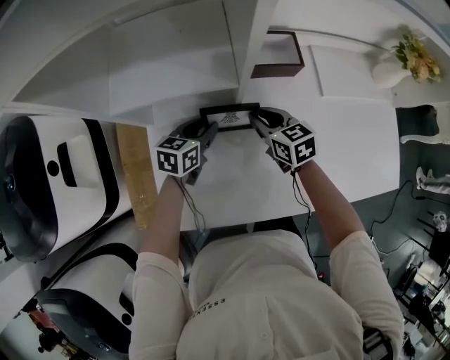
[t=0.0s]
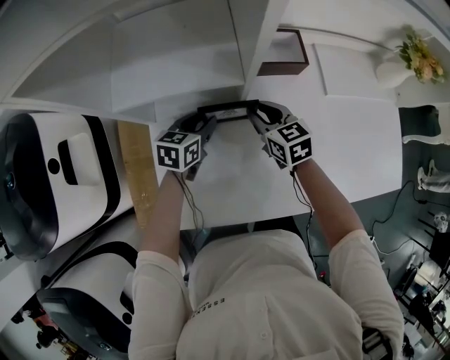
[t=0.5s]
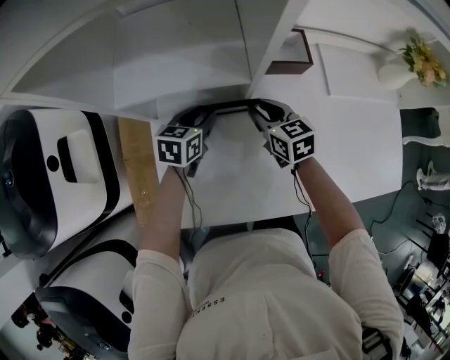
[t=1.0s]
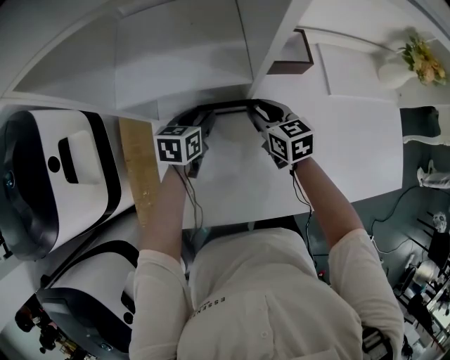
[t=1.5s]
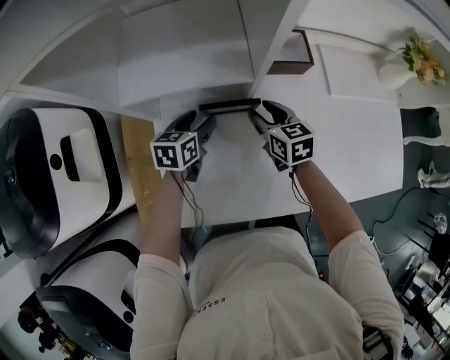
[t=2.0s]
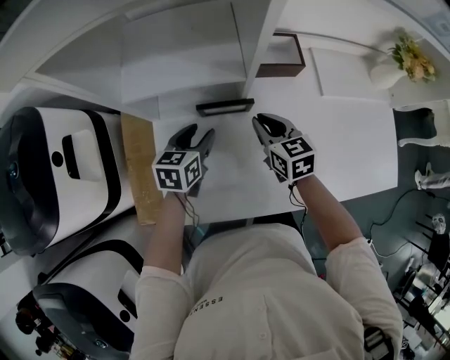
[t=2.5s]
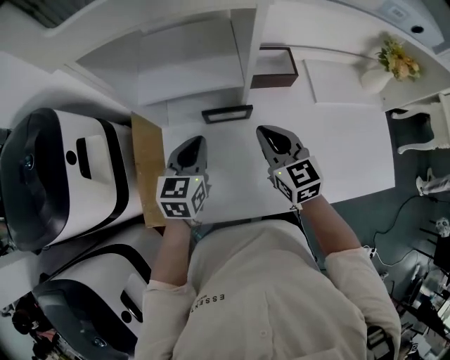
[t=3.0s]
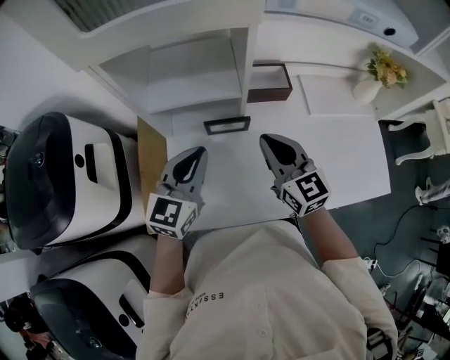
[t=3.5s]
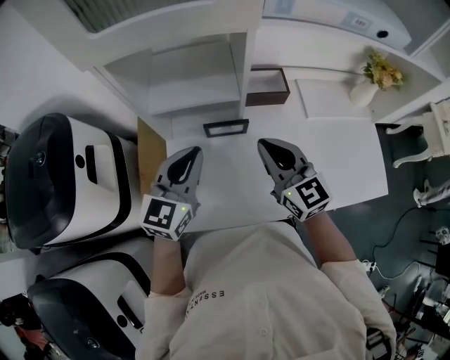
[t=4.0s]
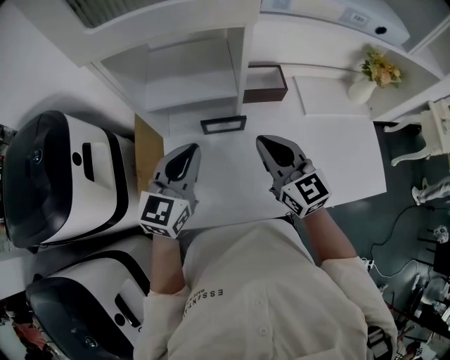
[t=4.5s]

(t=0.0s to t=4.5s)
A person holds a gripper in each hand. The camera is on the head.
t=0.0s - t=2.0s: The right gripper opens; the left gripper opens up.
t=2.0s - t=4.5s: The two grippers go approximately 25 cm upward and backward. The right gripper swivels roughly 30 degrees, and closes its fingers; the left gripper swivels some 40 degrees, and closes its fingers.

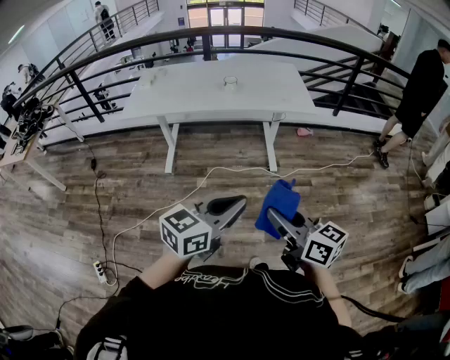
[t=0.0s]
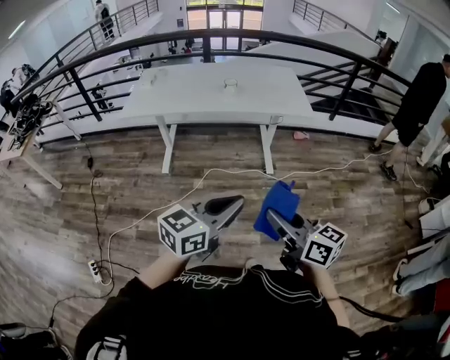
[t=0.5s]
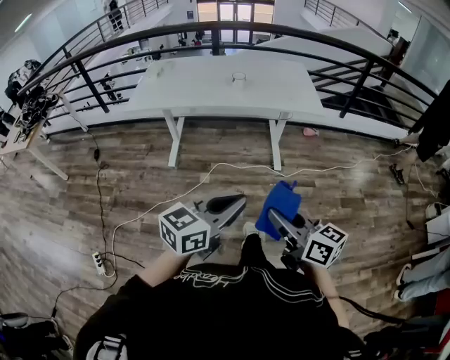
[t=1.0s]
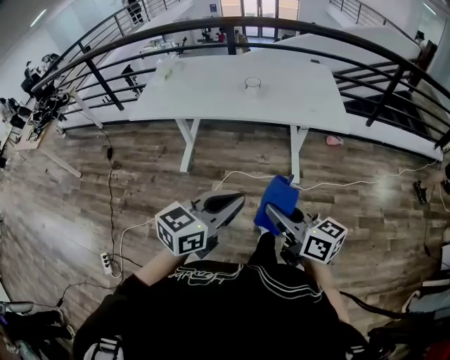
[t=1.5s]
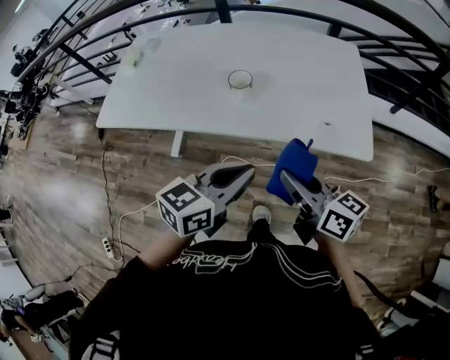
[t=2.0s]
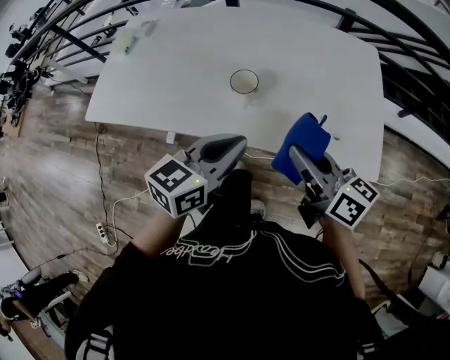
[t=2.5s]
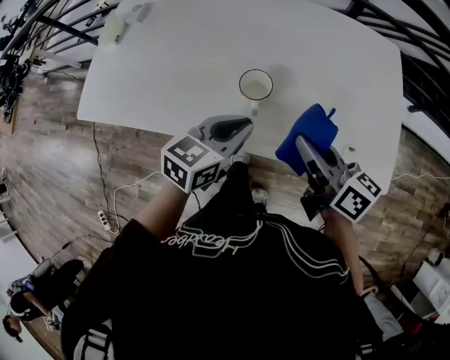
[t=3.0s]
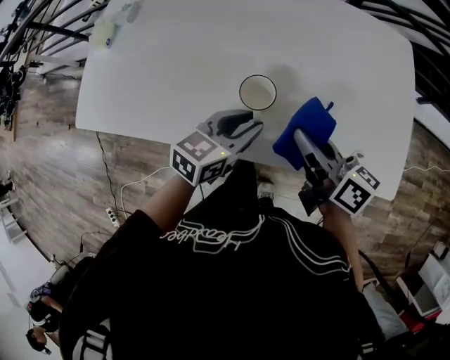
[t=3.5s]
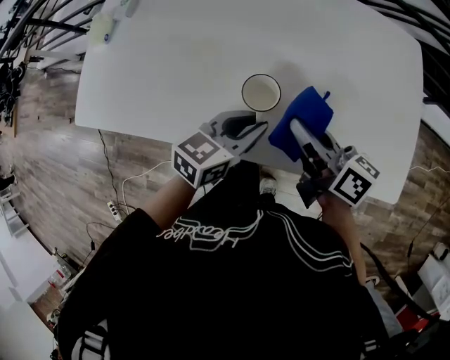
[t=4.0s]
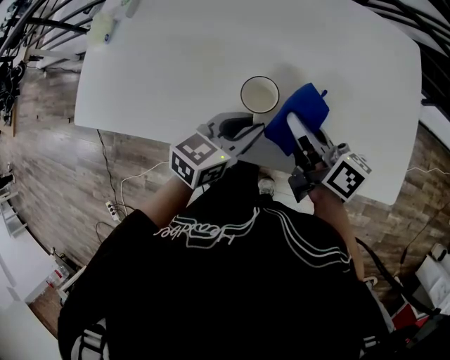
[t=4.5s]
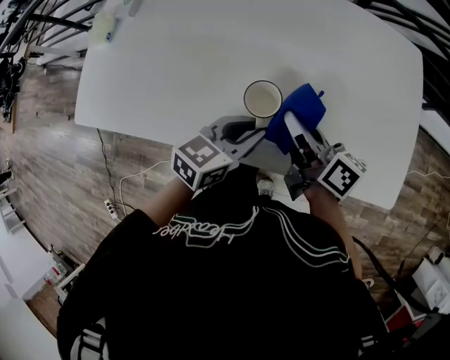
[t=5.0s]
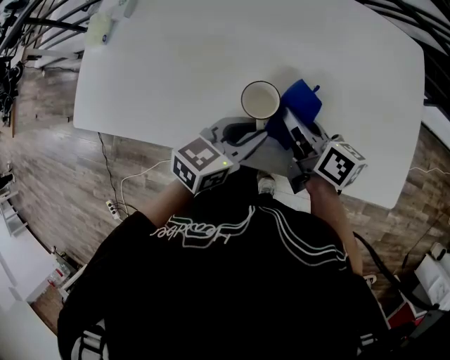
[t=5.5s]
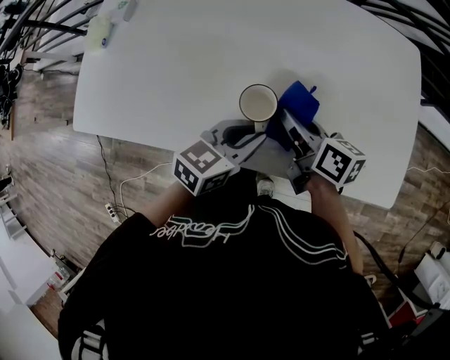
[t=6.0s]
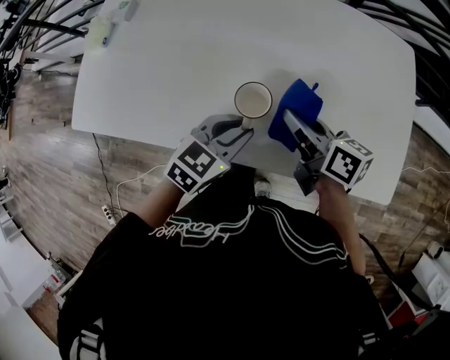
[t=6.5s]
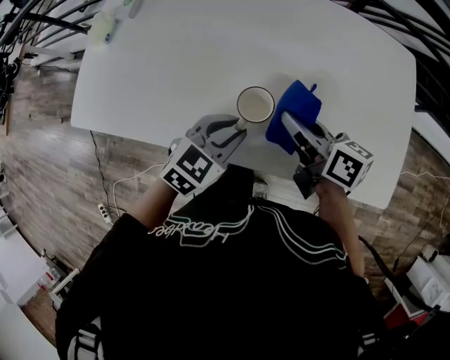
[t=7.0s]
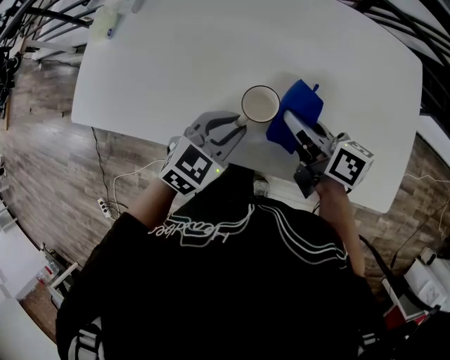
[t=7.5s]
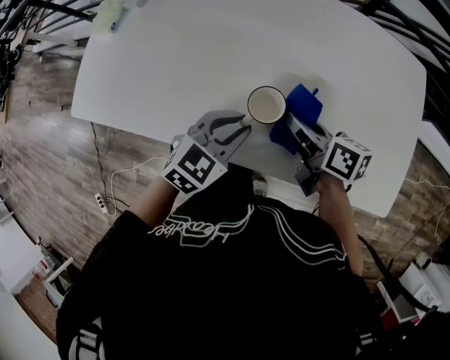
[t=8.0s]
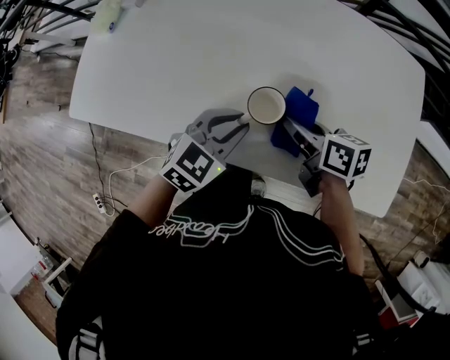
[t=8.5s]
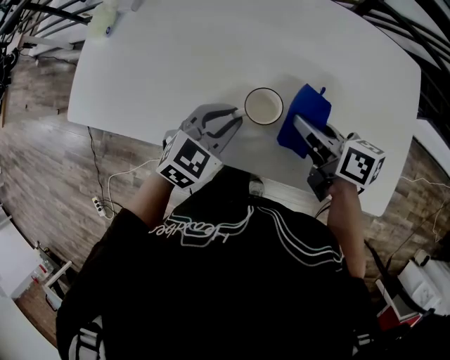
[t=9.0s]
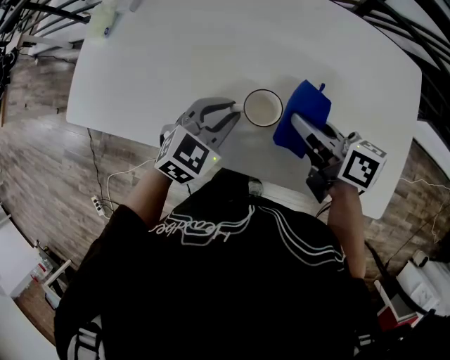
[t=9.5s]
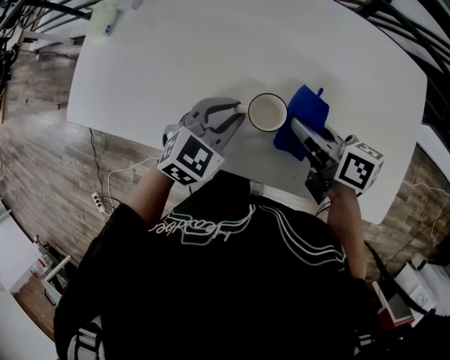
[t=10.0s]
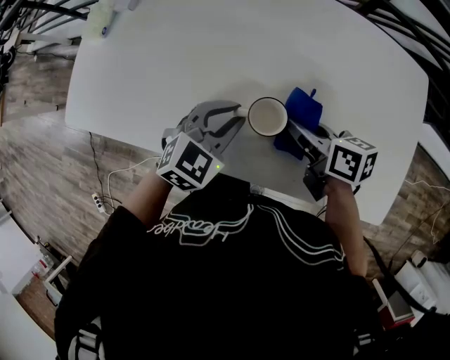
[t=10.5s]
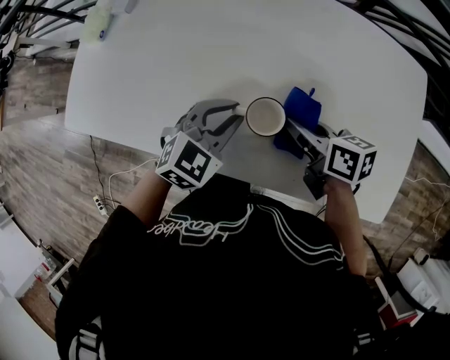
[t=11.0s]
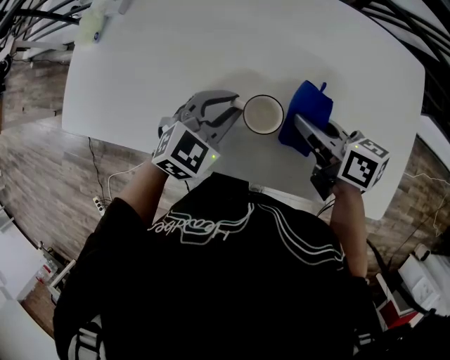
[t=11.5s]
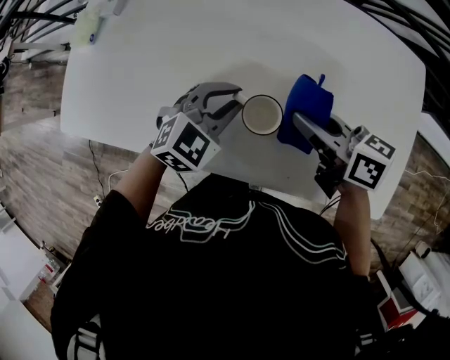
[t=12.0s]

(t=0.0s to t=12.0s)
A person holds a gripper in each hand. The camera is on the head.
t=0.0s - t=2.0s: The pair of grippers is taken forward, some 50 cm.
t=2.0s - t=4.0s: The left gripper is displaced forward and downward by roughly 30 cm. Meanwhile the right gripper goes some 25 cm forward.
t=4.0s - t=6.0s: The right gripper travels downward by approximately 5 cm.
t=6.0s - t=8.0s: The left gripper moves to the left, about 5 cm, and changes its angle by approximately 20 degrees.
t=8.0s - t=10.0s: The left gripper is displaced forward by about 5 cm.
t=10.0s - t=12.0s: The grippers move only a little.

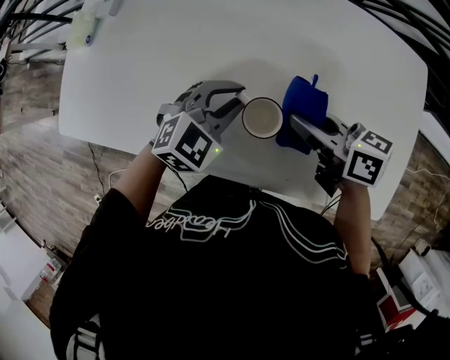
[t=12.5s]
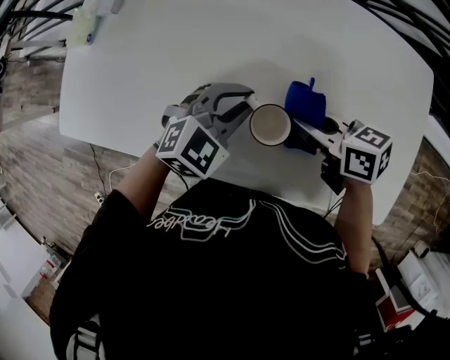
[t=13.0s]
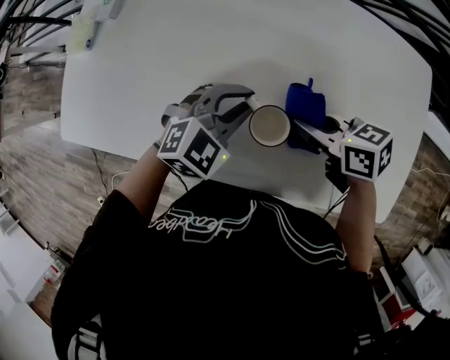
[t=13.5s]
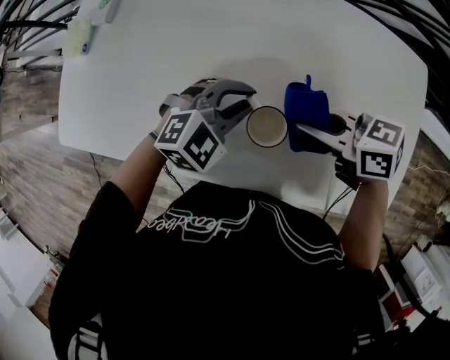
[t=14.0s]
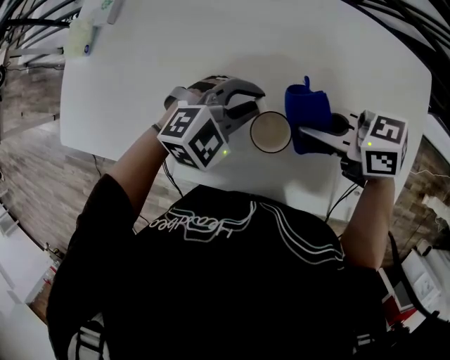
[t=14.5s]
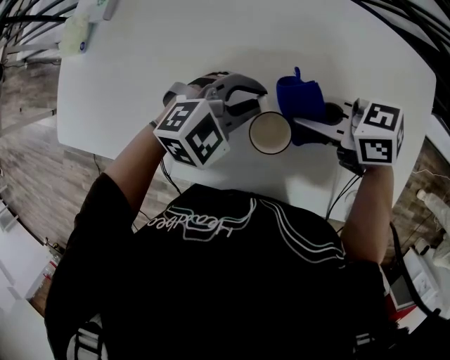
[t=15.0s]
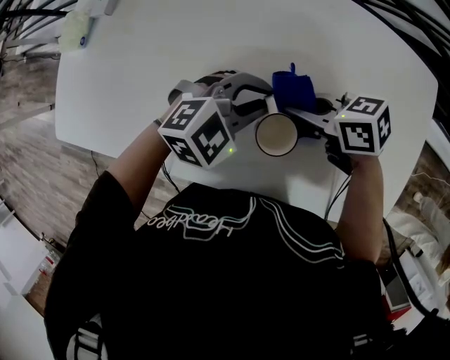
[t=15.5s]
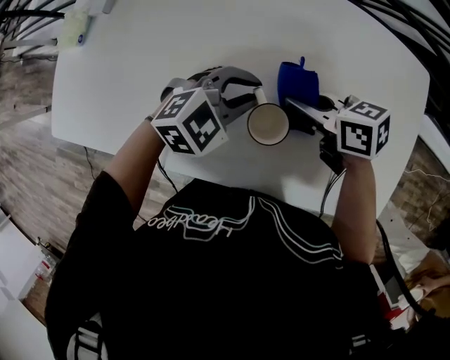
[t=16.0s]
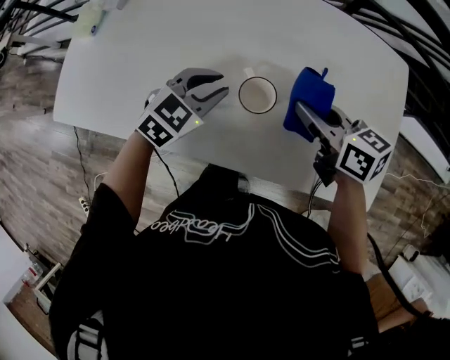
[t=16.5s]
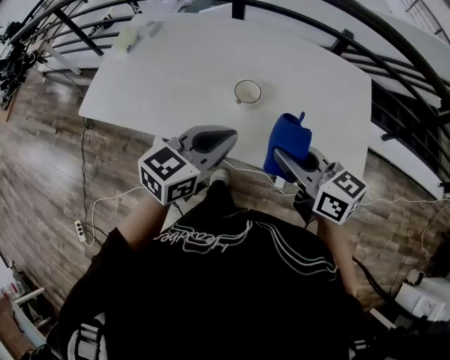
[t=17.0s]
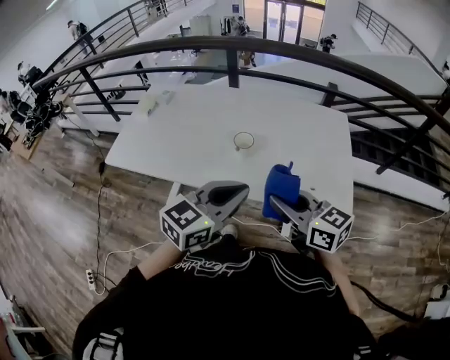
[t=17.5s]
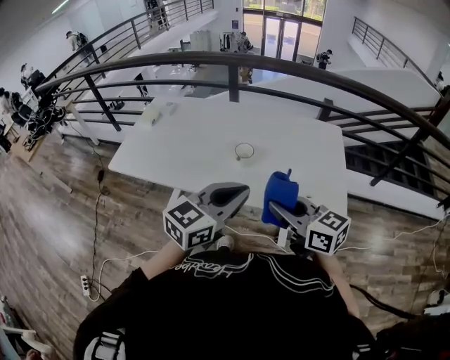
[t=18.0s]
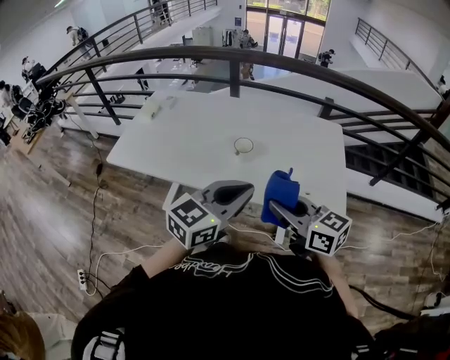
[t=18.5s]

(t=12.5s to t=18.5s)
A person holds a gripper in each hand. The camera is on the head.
t=12.5s - t=14.5s: The right gripper changes its angle by approximately 20 degrees.
t=14.5s - t=16.5s: The right gripper travels downward and back again, about 5 cm each way, and rotates some 30 degrees. Meanwhile the left gripper shifts by approximately 5 cm, and swivels about 30 degrees.
t=16.5s - t=18.5s: Both grippers move backward and upward, about 40 cm. The left gripper points its fingers some 30 degrees further upward, and closes; the right gripper rotates about 20 degrees.

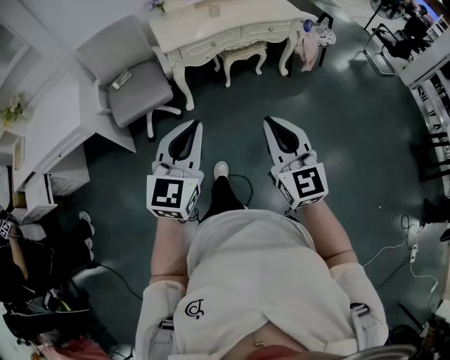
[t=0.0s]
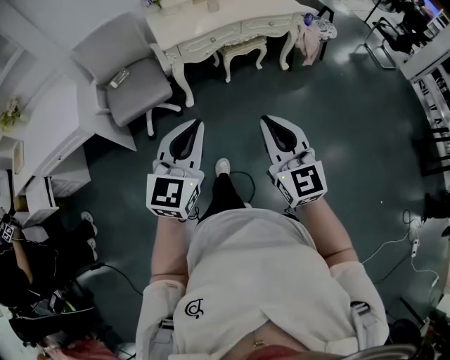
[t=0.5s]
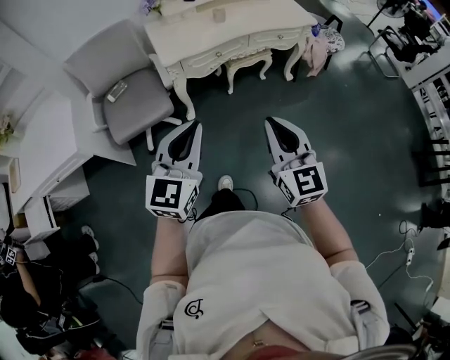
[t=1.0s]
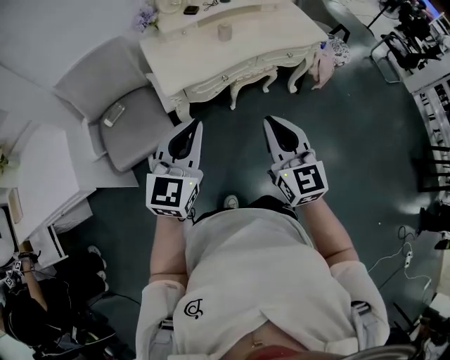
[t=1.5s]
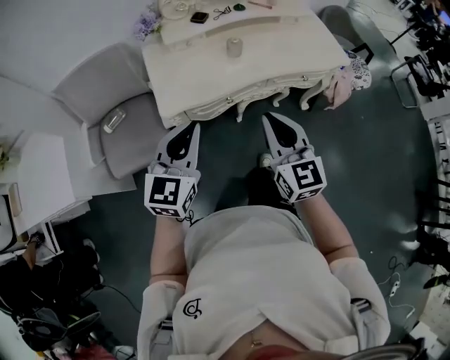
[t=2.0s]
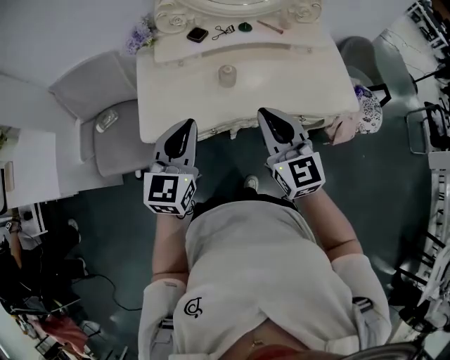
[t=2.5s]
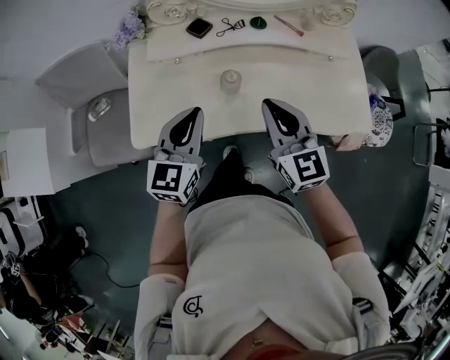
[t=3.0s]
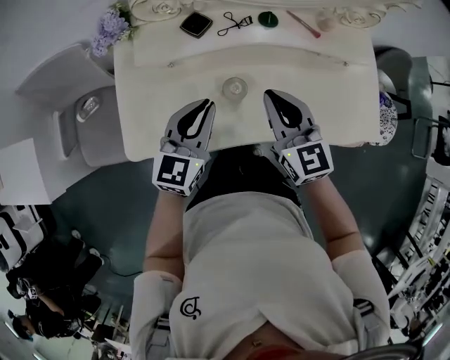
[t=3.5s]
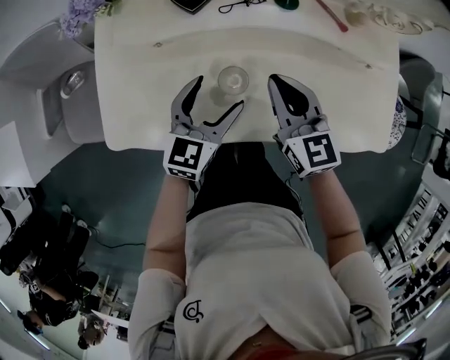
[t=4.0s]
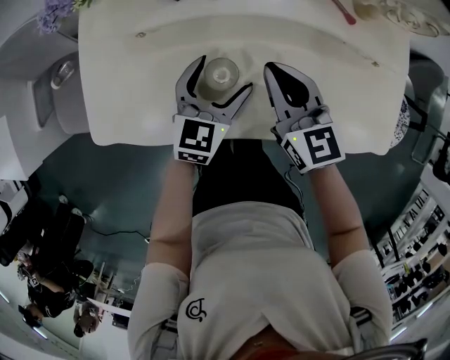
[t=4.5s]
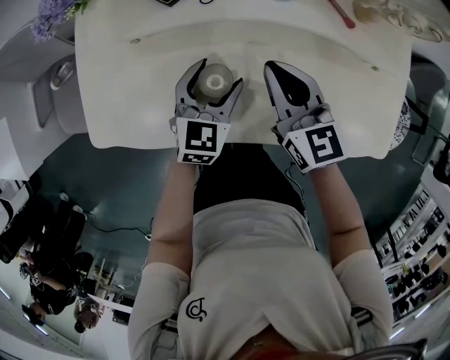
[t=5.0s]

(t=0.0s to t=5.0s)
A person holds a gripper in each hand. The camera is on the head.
t=0.0s - t=2.5s: The two grippers travel together, forward, approximately 70 cm.
t=2.5s - t=5.0s: The left gripper heads downward, forward and to the right, covering approximately 40 cm, turns by approximately 20 degrees, and opens. Meanwhile the right gripper shifts about 35 cm forward and downward, and swivels approximately 20 degrees.
